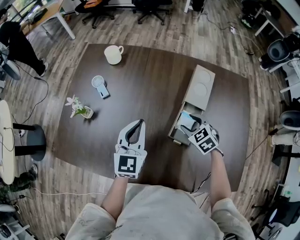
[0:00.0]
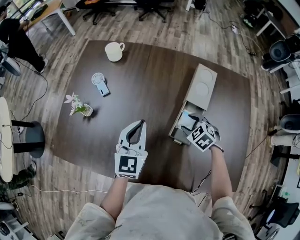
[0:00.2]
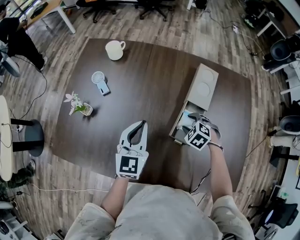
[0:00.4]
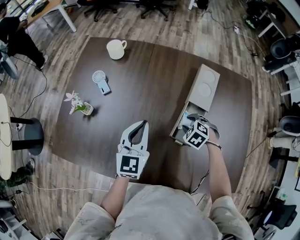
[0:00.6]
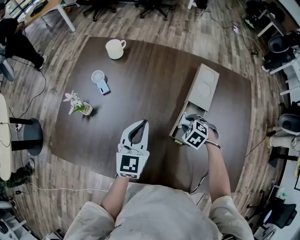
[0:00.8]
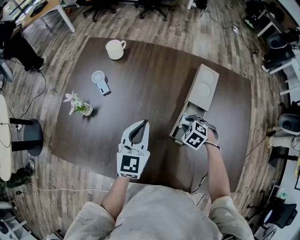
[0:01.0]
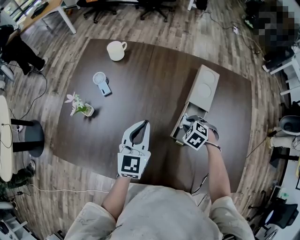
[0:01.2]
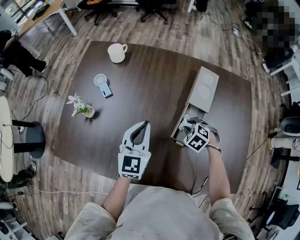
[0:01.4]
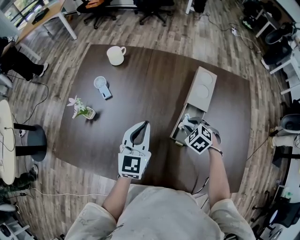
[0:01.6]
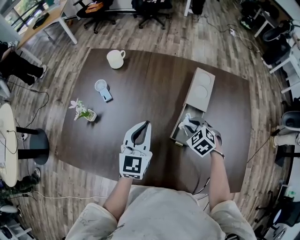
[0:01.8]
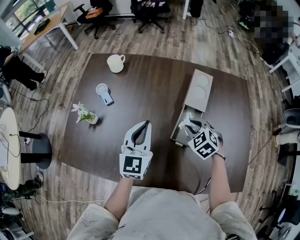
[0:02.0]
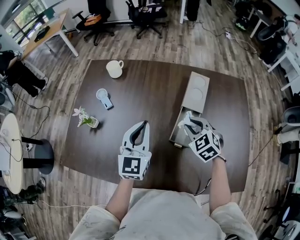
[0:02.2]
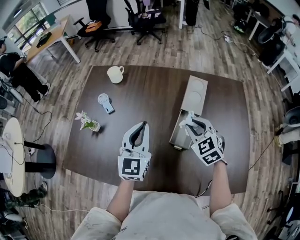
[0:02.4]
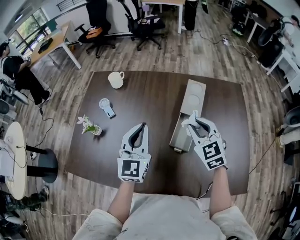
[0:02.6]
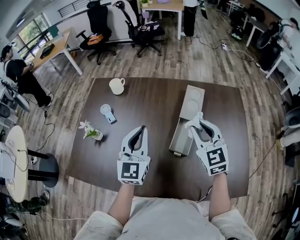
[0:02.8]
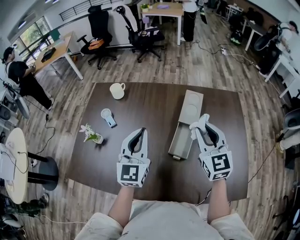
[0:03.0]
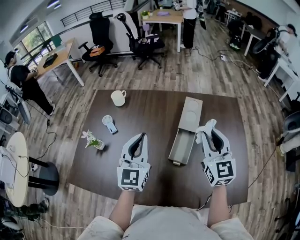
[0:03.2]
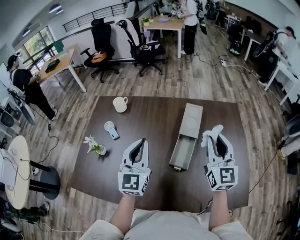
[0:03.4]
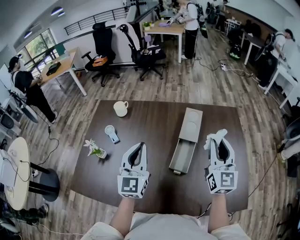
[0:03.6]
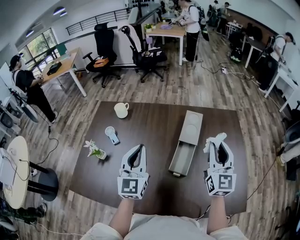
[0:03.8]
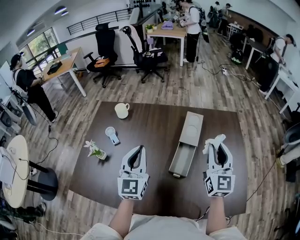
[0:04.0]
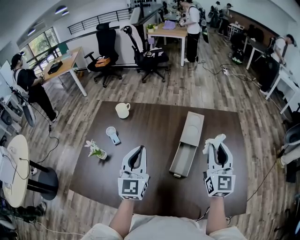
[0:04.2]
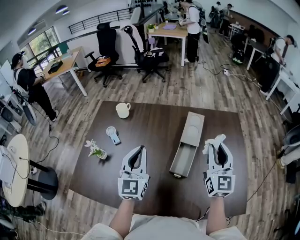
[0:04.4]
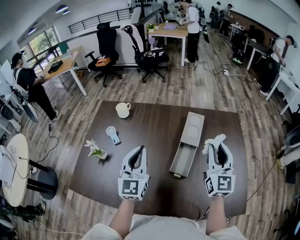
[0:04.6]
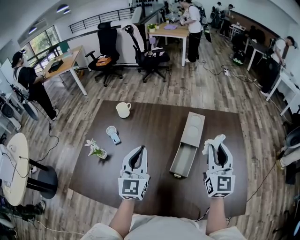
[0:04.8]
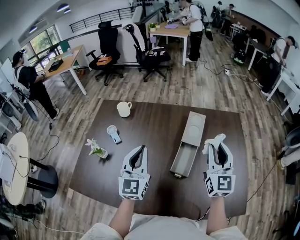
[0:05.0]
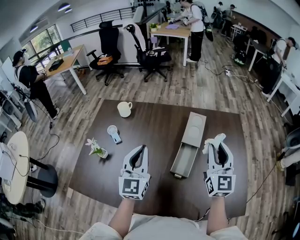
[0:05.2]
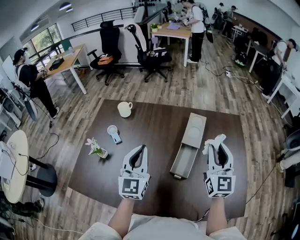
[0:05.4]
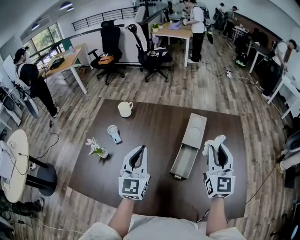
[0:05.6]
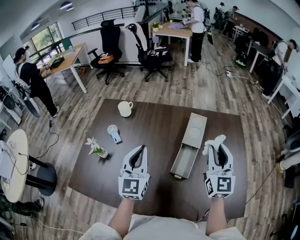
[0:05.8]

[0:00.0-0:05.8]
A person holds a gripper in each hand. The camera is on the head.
0:00.0 to 0:01.4: The right gripper goes roughly 5 cm downward, rotates roughly 20 degrees, and closes.
0:01.4 to 0:02.8: The left gripper travels upward by roughly 10 cm, while the right gripper travels upward by some 25 cm, and angles its fingers upward, by some 60 degrees.
0:02.8 to 0:04.4: The right gripper heads to the right and upward, covering approximately 10 cm, and turns by approximately 30 degrees.
0:04.4 to 0:05.8: There are only small adjustments of the grippers.

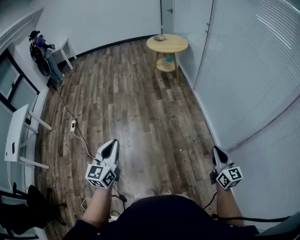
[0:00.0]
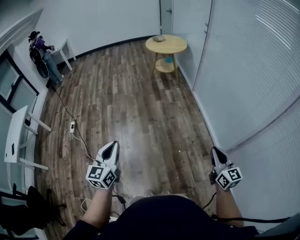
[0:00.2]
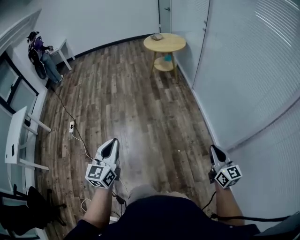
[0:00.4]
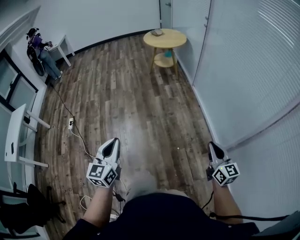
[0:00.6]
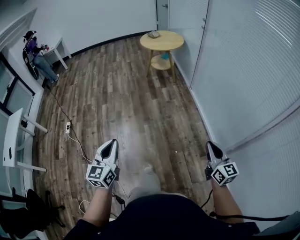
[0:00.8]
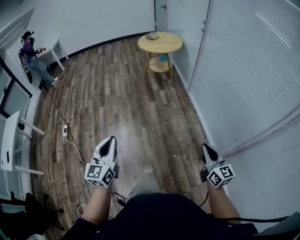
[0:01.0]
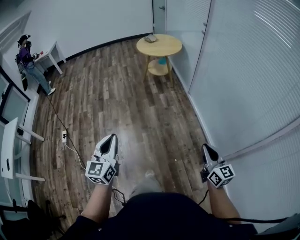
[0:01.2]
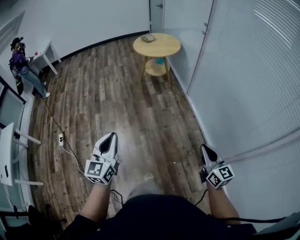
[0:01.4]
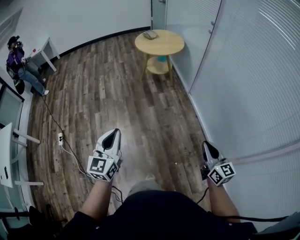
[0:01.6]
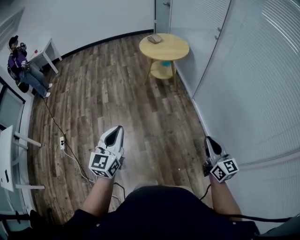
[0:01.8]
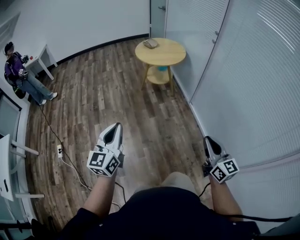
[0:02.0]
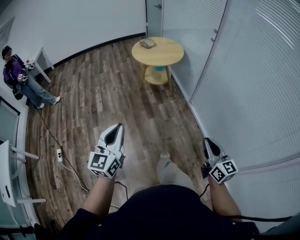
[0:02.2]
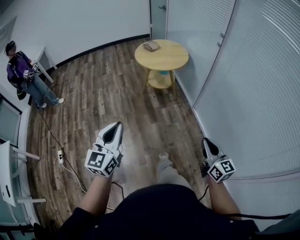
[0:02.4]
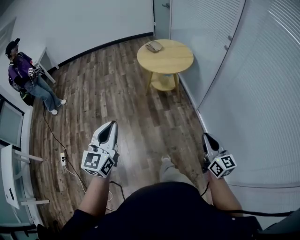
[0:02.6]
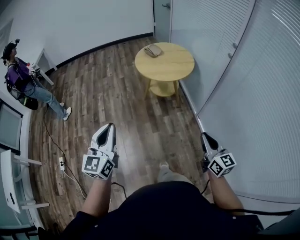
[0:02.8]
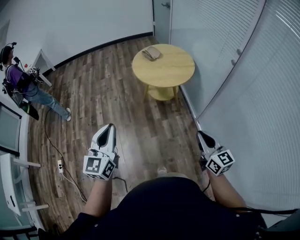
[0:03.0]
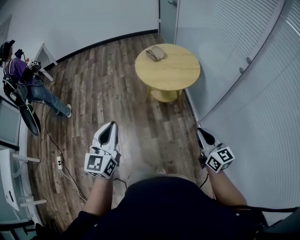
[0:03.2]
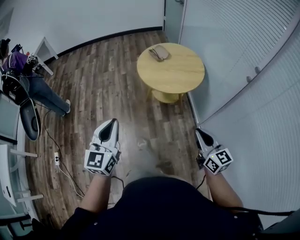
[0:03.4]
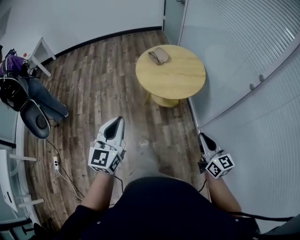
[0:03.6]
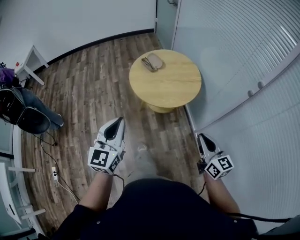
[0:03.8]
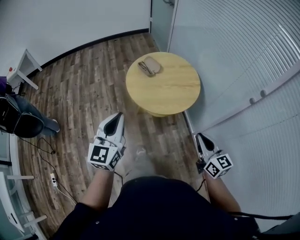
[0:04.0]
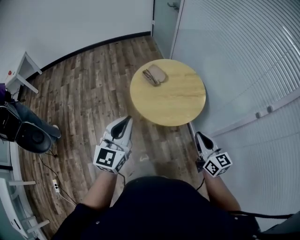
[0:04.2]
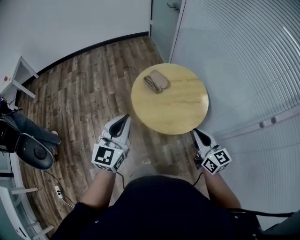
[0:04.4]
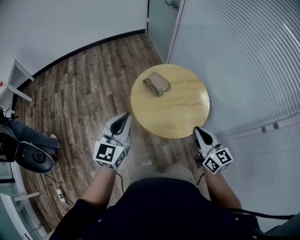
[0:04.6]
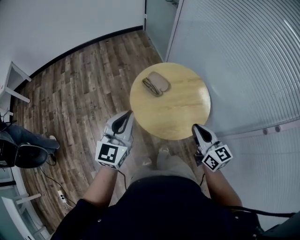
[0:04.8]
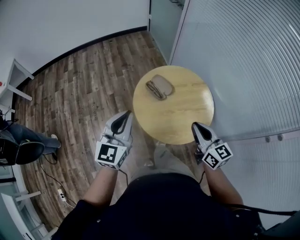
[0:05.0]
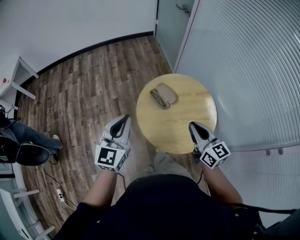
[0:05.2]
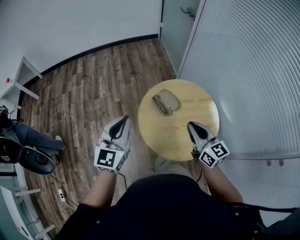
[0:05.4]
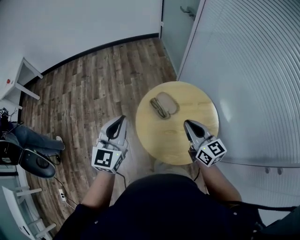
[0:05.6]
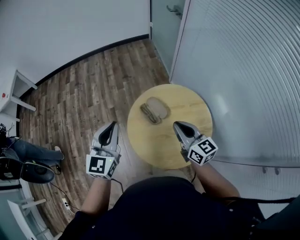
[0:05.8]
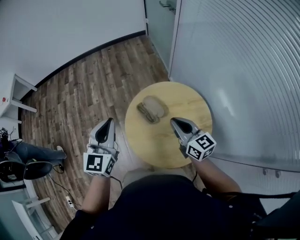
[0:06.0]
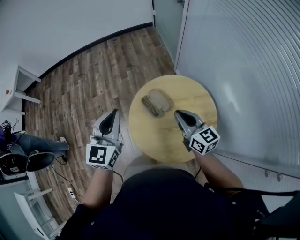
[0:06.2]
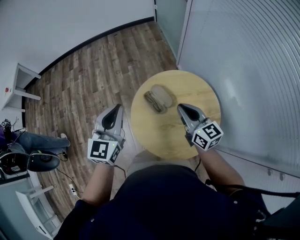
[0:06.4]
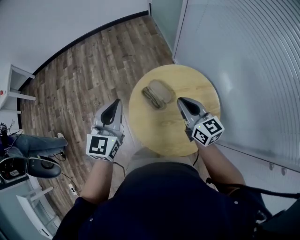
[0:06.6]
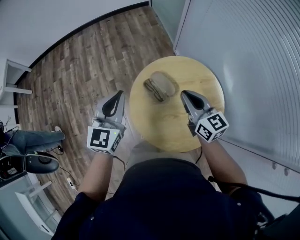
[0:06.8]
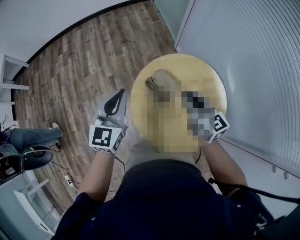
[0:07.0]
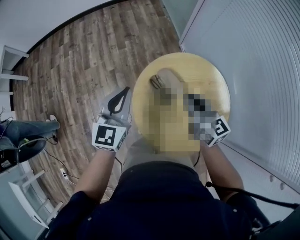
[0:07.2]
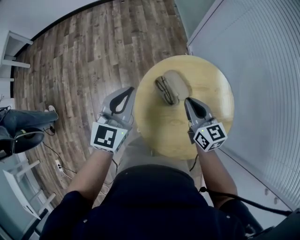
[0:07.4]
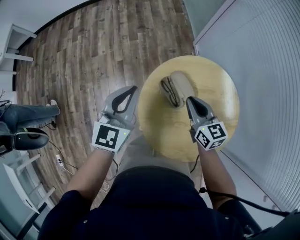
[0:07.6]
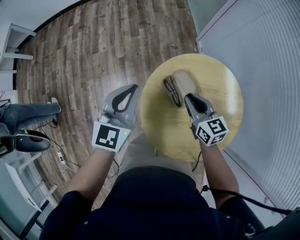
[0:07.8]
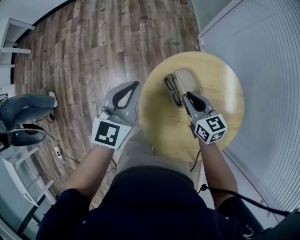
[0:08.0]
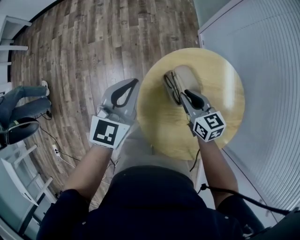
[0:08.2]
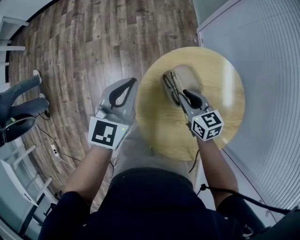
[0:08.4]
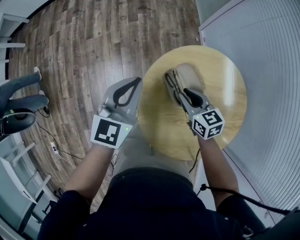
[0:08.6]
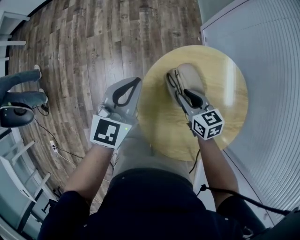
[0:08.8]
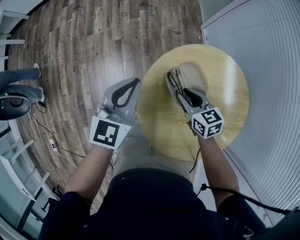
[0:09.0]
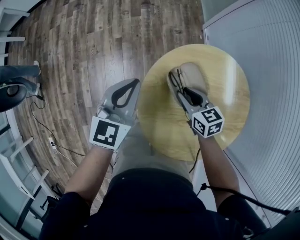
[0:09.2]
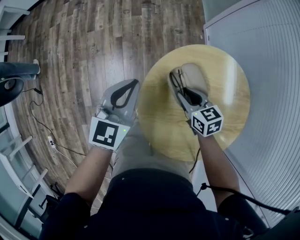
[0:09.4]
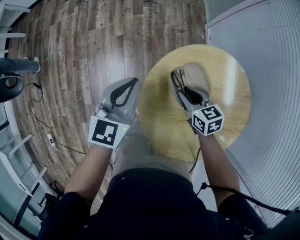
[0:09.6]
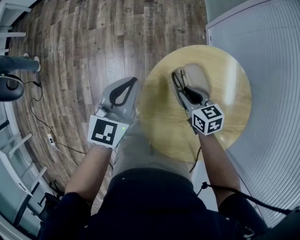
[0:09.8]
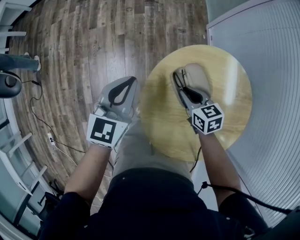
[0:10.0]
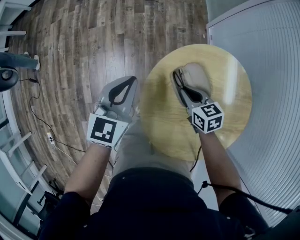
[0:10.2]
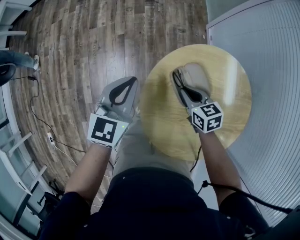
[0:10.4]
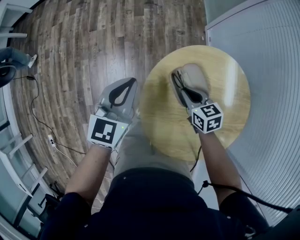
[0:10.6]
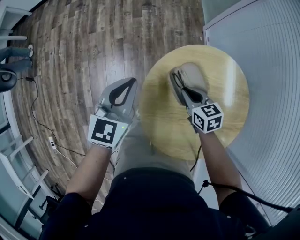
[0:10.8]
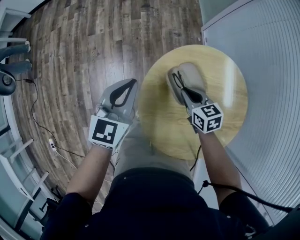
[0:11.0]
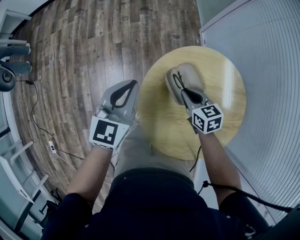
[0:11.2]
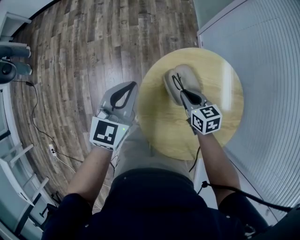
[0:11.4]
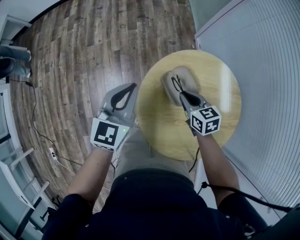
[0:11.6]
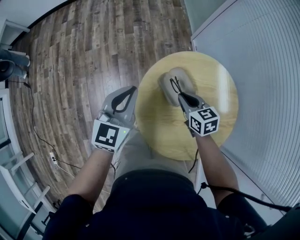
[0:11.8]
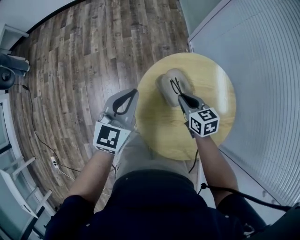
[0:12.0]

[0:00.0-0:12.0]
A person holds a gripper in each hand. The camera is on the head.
0:00.0 to 0:01.6: The grippers both shift forward by roughly 35 cm.
0:01.6 to 0:03.0: The pair of grippers is taken forward, approximately 50 cm.
0:03.0 to 0:04.4: The two grippers travel together, forward, some 50 cm.
0:04.4 to 0:06.0: The grippers both shift forward by roughly 30 cm.
0:06.0 to 0:07.6: The left gripper shifts roughly 20 cm downward and forward. Meanwhile the right gripper shifts about 20 cm downward, forward and to the left.
0:07.6 to 0:09.0: Both grippers travel together downward, approximately 10 cm. The right gripper changes its angle by approximately 20 degrees, and opens up.
0:09.0 to 0:10.4: The right gripper closes its fingers.
0:10.4 to 0:12.0: Both grippers move upward, some 10 cm.

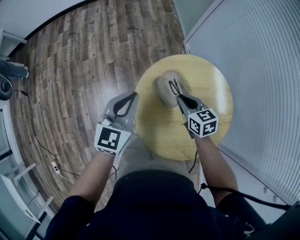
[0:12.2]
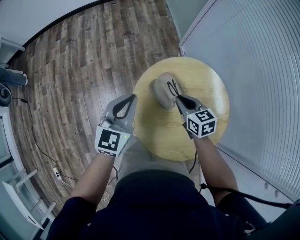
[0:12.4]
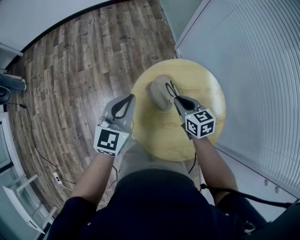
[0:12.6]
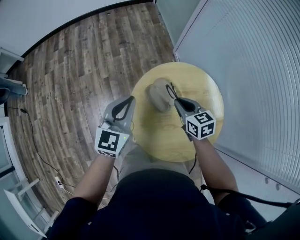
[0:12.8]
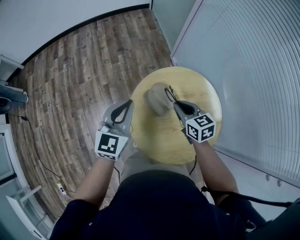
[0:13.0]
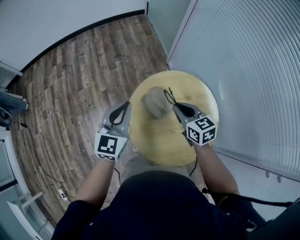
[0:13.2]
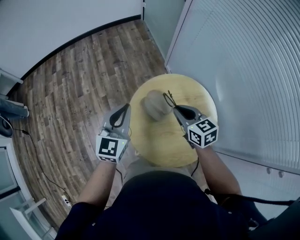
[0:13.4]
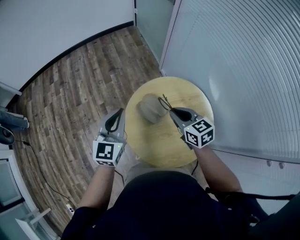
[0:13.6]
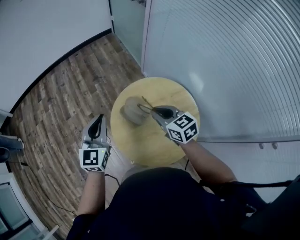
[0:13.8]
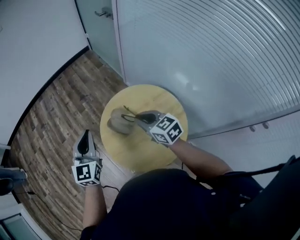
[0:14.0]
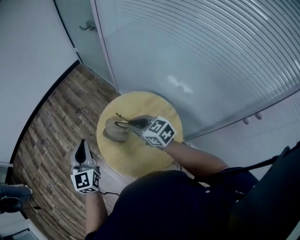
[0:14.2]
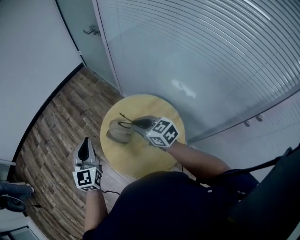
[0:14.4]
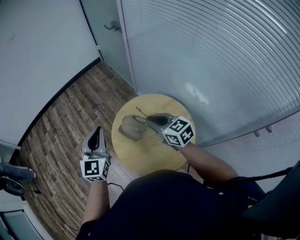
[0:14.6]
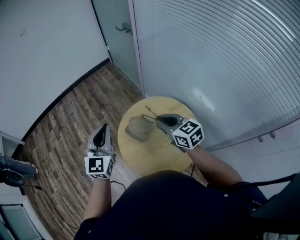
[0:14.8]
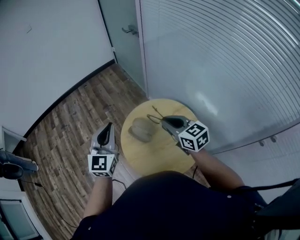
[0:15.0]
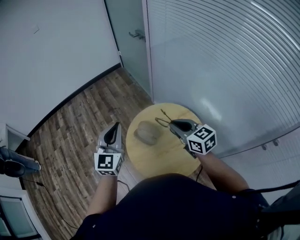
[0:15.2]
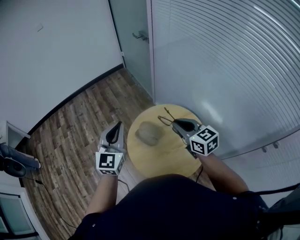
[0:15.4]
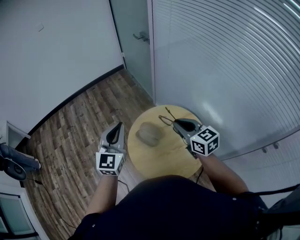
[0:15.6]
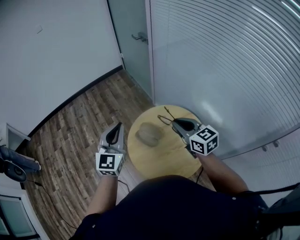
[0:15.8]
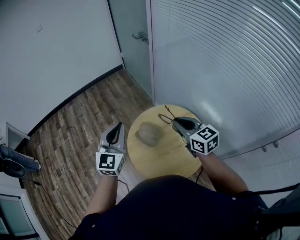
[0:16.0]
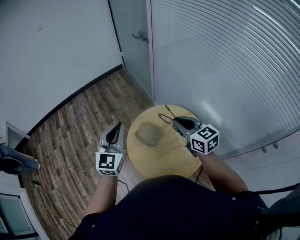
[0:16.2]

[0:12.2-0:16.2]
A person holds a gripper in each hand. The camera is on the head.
0:12.2 to 0:13.6: The left gripper heads upward, covering approximately 5 cm. The right gripper travels upward and backward by some 15 cm.
0:13.6 to 0:14.8: Both grippers travel together upward, about 10 cm.
0:14.8 to 0:16.2: There are only small adjustments of the grippers.

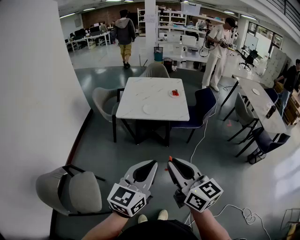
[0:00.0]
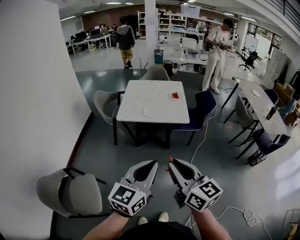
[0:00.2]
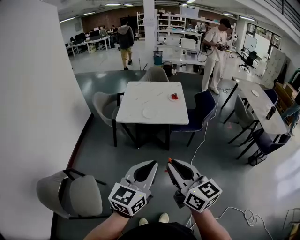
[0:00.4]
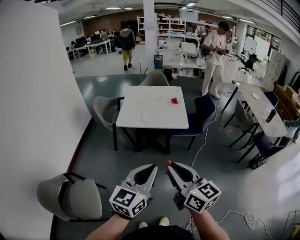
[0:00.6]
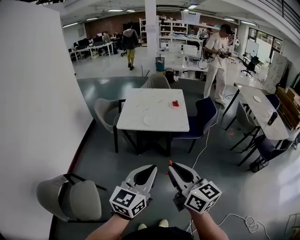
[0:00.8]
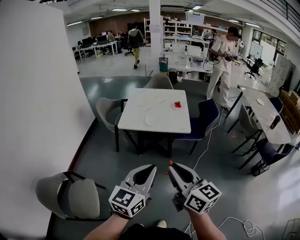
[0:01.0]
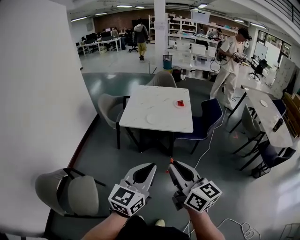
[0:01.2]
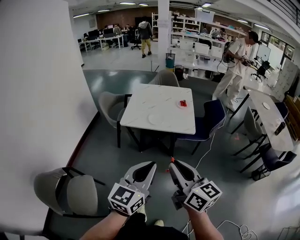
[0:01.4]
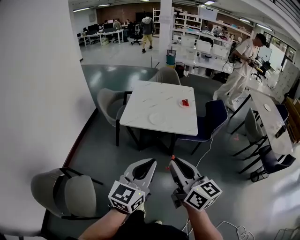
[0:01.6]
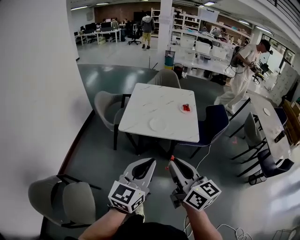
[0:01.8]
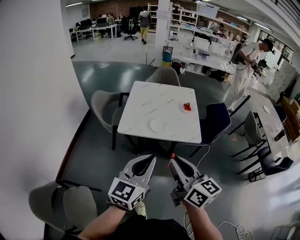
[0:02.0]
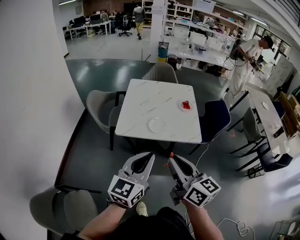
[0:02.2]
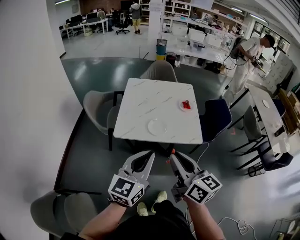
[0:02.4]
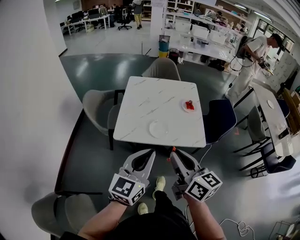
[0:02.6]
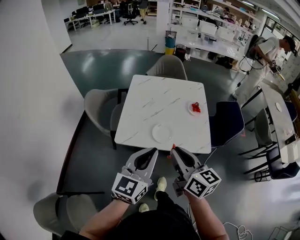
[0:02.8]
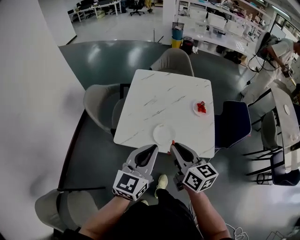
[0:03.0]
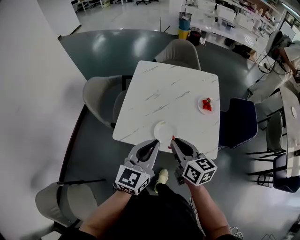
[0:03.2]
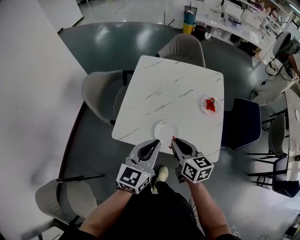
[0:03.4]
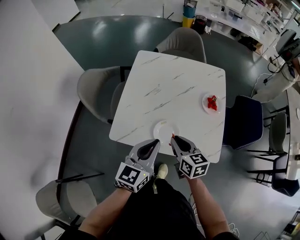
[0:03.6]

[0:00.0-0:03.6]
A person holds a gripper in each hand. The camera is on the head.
0:00.0 to 0:01.8: The grippers both shift forward by some 20 cm.
0:01.8 to 0:03.6: The two grippers travel together, forward, approximately 50 cm. The left gripper heads downward, covering approximately 20 cm; the right gripper goes approximately 30 cm downward, and swivels approximately 30 degrees.
